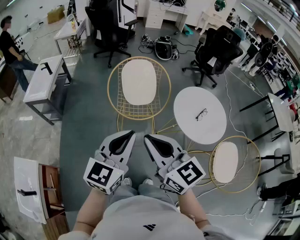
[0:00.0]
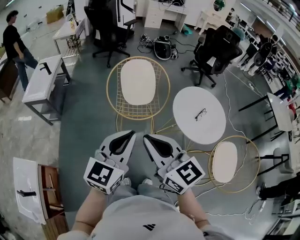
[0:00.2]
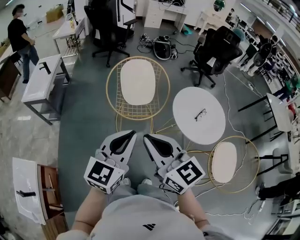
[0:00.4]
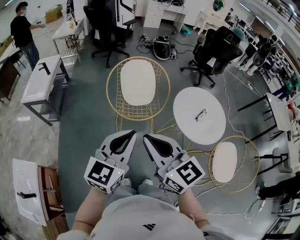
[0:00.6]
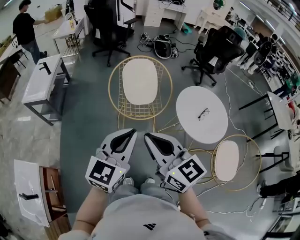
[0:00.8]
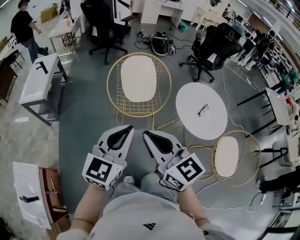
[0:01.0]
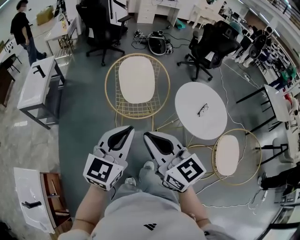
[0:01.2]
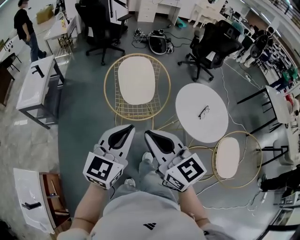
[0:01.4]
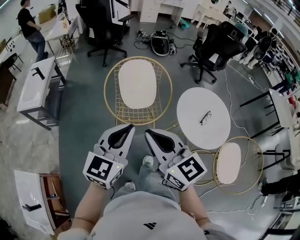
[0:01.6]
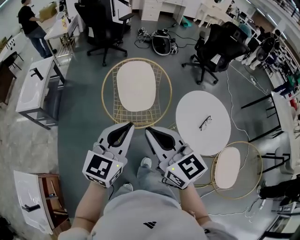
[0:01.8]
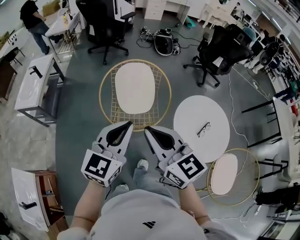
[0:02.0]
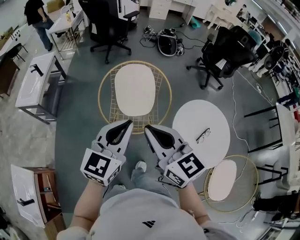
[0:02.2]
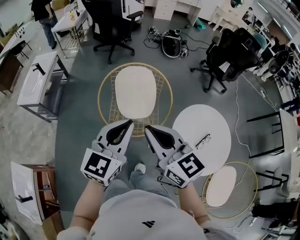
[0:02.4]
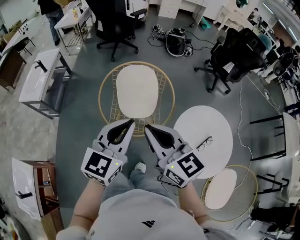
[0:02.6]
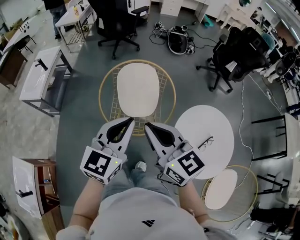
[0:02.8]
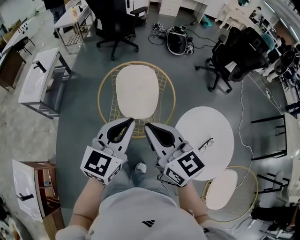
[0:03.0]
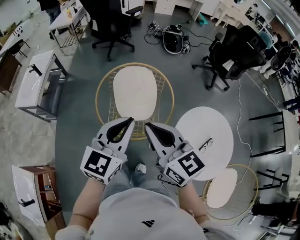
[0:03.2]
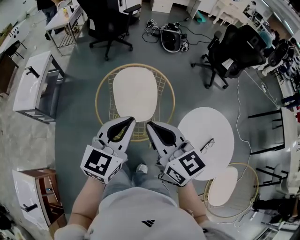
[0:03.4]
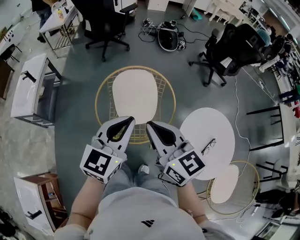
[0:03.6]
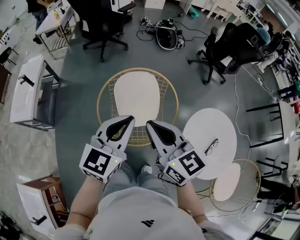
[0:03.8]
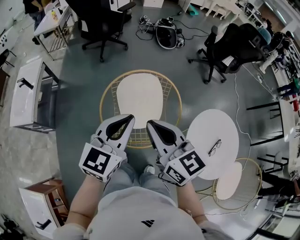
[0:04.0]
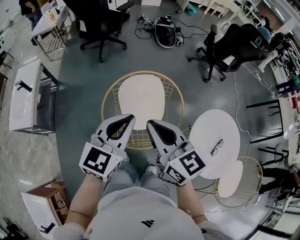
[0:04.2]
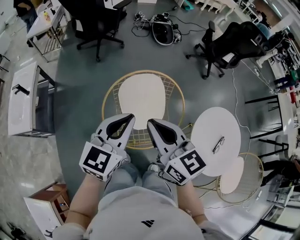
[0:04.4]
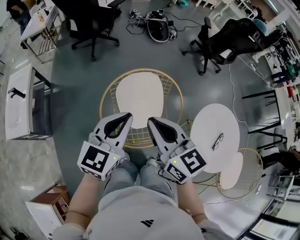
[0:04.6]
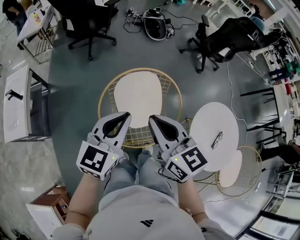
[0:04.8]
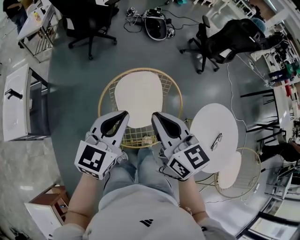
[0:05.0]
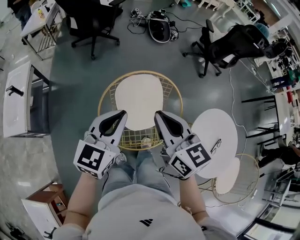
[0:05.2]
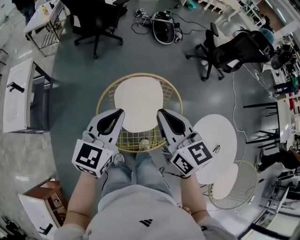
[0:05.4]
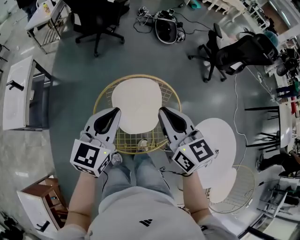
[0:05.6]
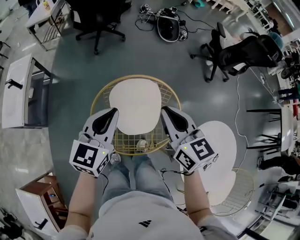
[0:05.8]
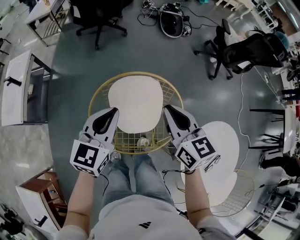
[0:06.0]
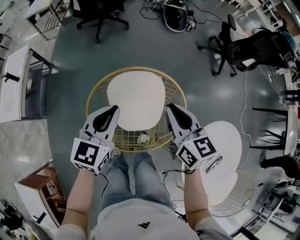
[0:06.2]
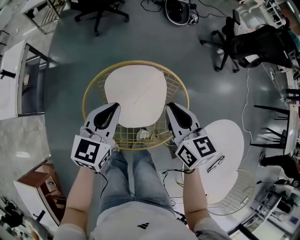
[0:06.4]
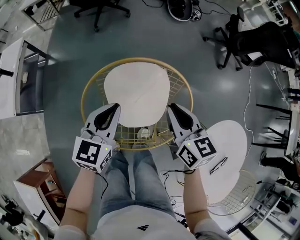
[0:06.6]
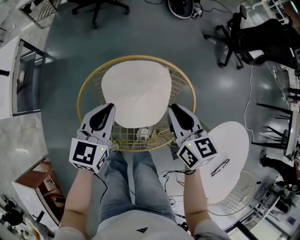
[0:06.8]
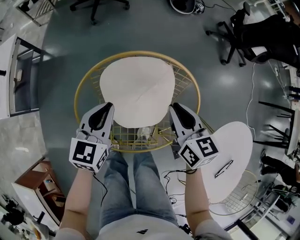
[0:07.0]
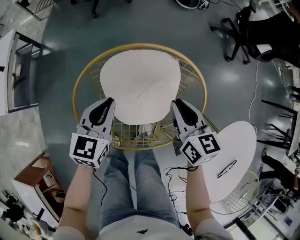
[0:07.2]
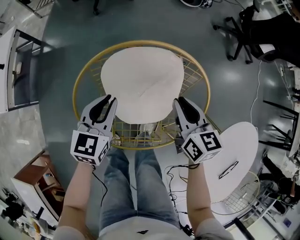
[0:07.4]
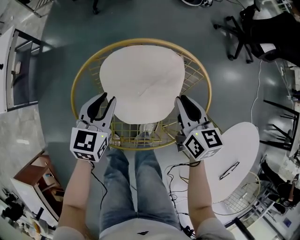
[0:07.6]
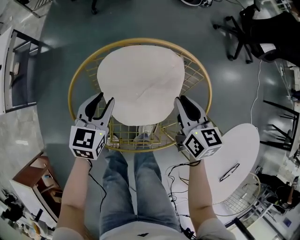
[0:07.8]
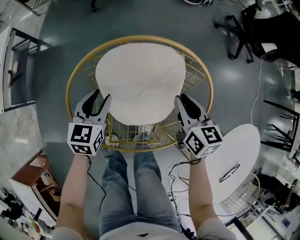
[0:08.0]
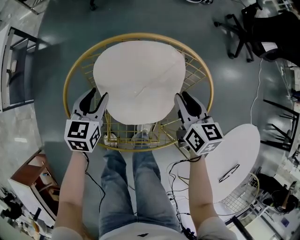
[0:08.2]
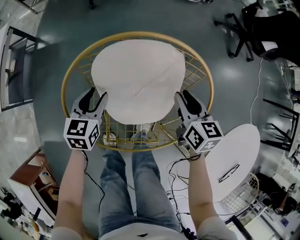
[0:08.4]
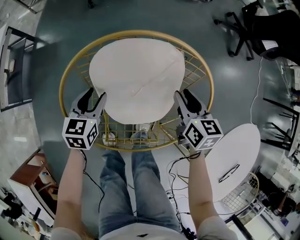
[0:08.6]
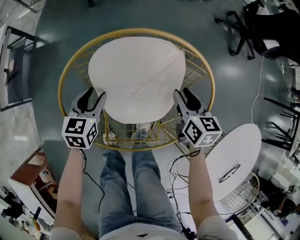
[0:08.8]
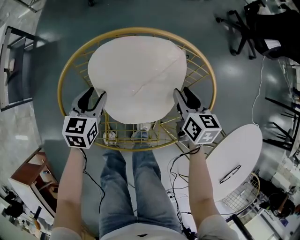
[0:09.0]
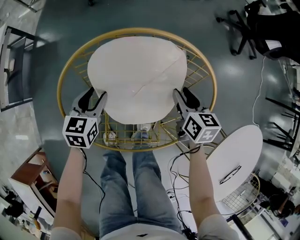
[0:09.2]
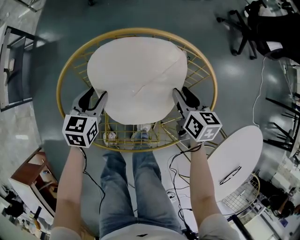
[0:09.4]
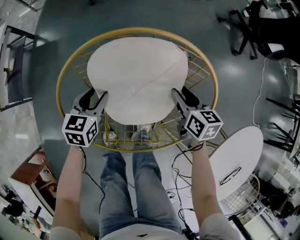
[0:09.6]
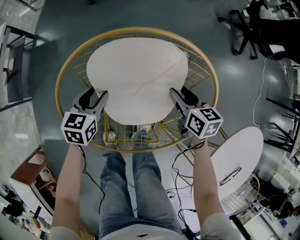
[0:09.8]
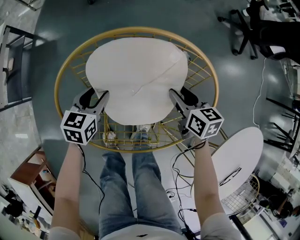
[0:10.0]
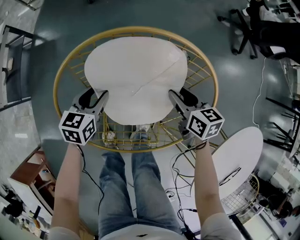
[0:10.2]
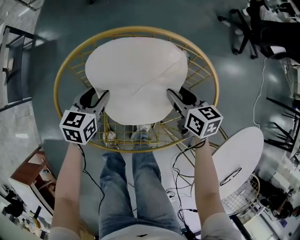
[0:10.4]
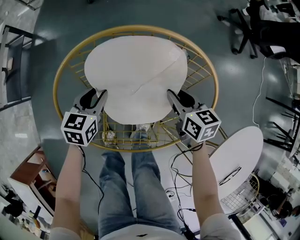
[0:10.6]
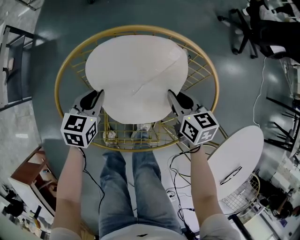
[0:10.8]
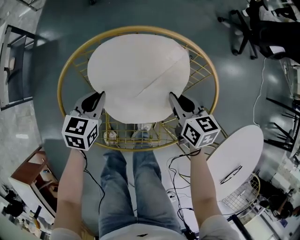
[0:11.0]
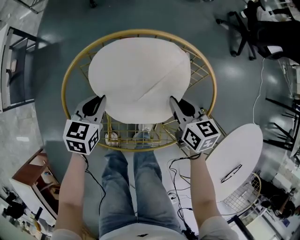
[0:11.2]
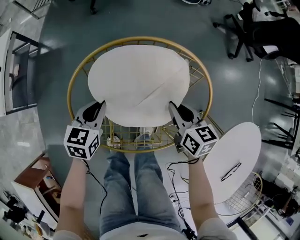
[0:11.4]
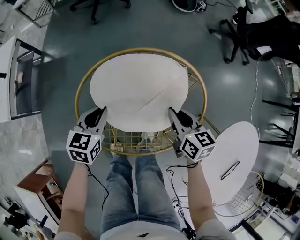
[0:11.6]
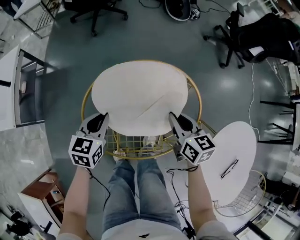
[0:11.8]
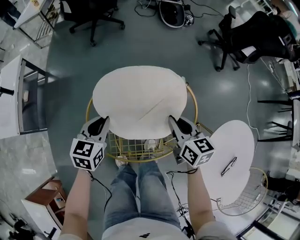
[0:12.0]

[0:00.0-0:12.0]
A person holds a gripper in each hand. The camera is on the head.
0:00.0 to 0:01.6: Both grippers move forward, roughly 10 cm.
0:01.6 to 0:03.0: Both grippers travel together forward and to the right, about 20 cm.
0:03.0 to 0:04.4: The two grippers go some 20 cm forward and to the left.
0:04.4 to 0:06.0: The left gripper is displaced forward and downward by some 15 cm, while the right gripper moves forward, to the right and downward, roughly 20 cm.
0:06.0 to 0:07.6: The two grippers go approximately 25 cm downward. The left gripper opens.
0:07.6 to 0:09.0: Both grippers move downward, some 10 cm. The left gripper opens up.
0:09.0 to 0:10.4: The grippers make only small movements.
0:10.4 to 0:12.0: The two grippers go roughly 15 cm upward. The right gripper closes its fingers. Meanwhile the left gripper closes up.

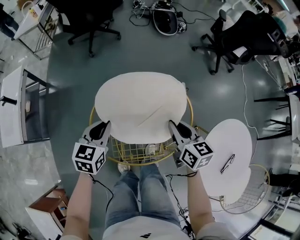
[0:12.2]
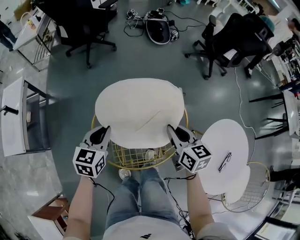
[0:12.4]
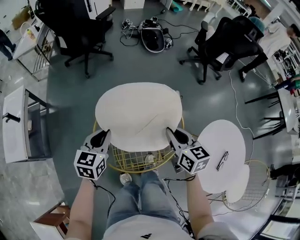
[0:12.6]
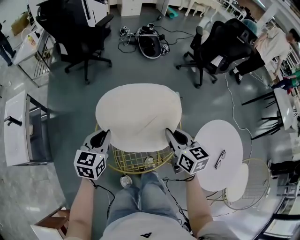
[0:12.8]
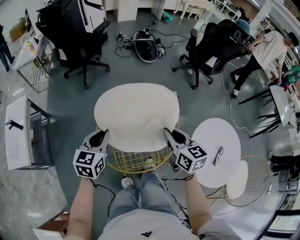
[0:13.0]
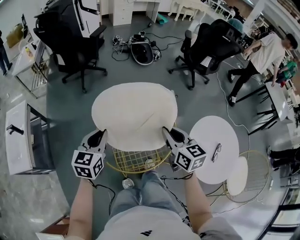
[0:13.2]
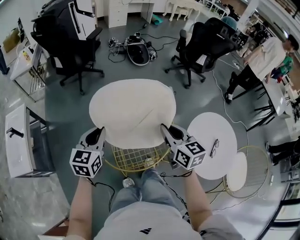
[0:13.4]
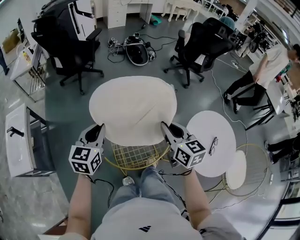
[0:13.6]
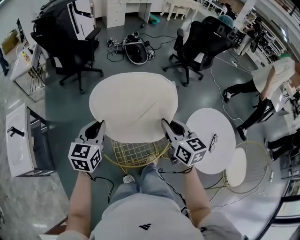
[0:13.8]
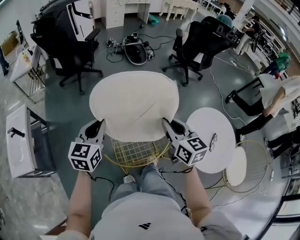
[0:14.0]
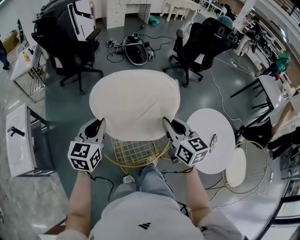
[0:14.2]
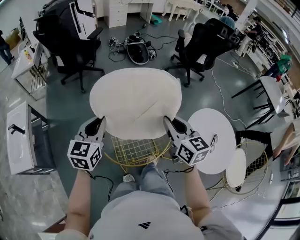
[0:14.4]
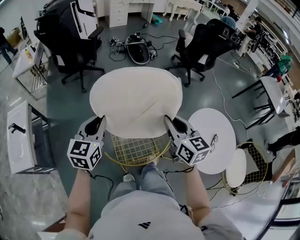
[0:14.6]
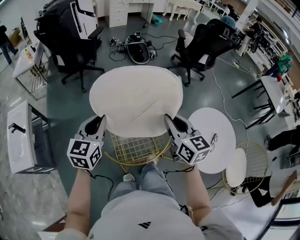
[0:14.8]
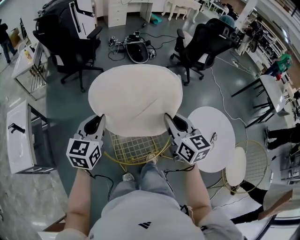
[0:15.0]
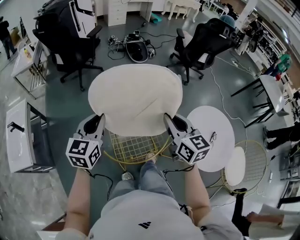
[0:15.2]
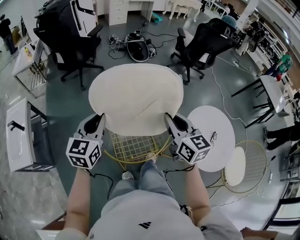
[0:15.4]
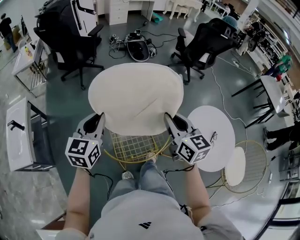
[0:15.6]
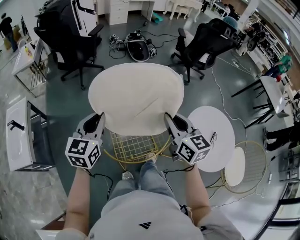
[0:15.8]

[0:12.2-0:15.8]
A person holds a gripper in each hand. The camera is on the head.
0:12.2 to 0:14.0: The left gripper heads upward, covering some 20 cm; the right gripper moves upward and backward, approximately 20 cm.
0:14.0 to 0:15.8: The grippers stay close to where they were, moving slightly.

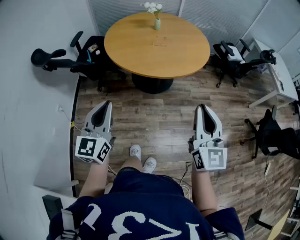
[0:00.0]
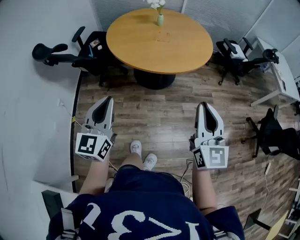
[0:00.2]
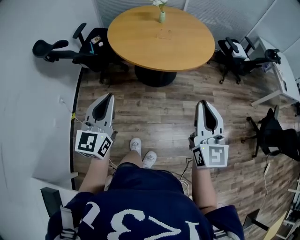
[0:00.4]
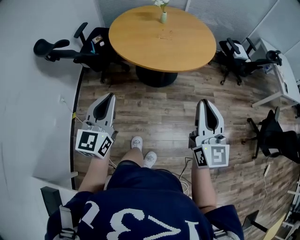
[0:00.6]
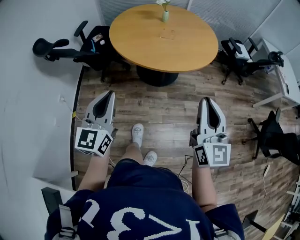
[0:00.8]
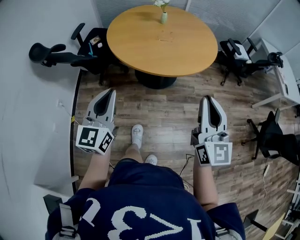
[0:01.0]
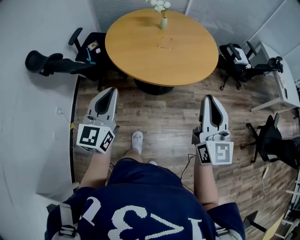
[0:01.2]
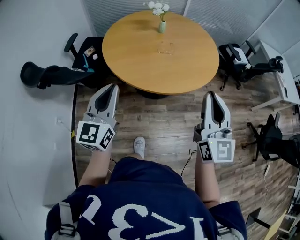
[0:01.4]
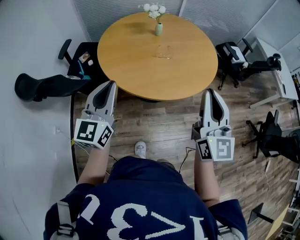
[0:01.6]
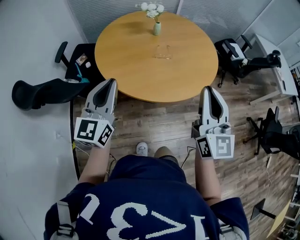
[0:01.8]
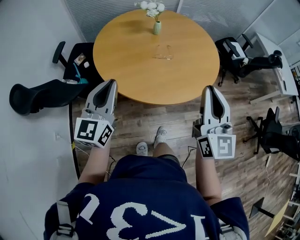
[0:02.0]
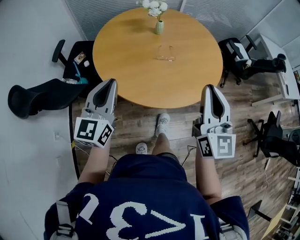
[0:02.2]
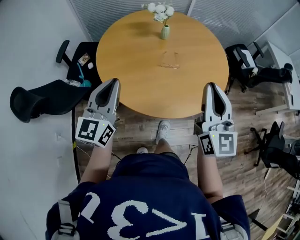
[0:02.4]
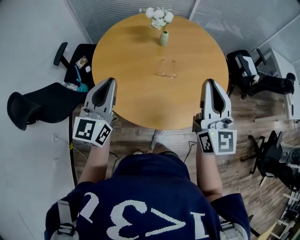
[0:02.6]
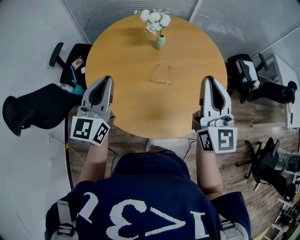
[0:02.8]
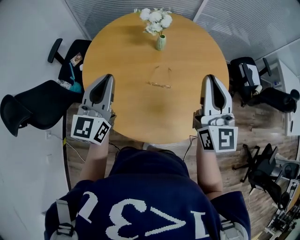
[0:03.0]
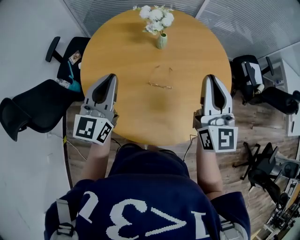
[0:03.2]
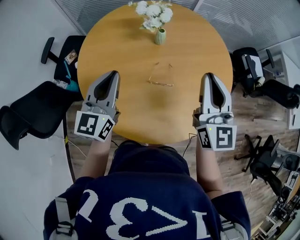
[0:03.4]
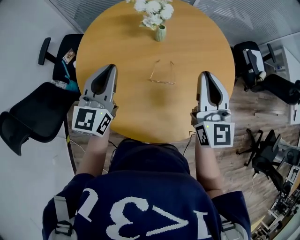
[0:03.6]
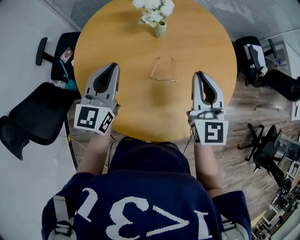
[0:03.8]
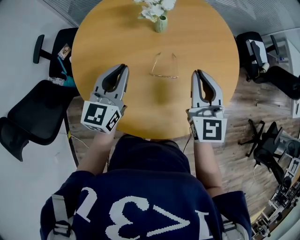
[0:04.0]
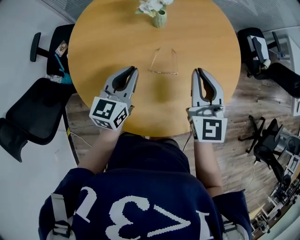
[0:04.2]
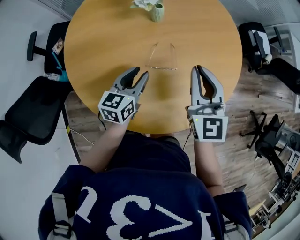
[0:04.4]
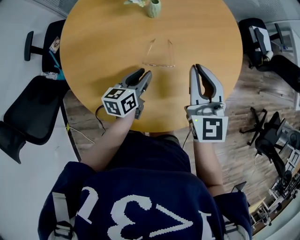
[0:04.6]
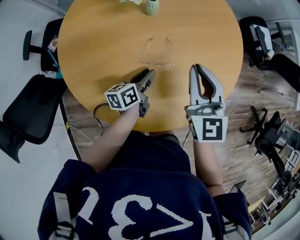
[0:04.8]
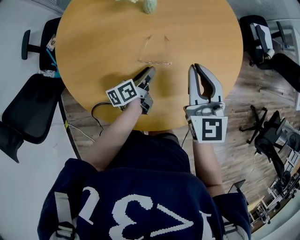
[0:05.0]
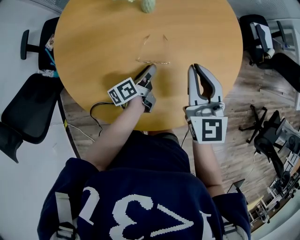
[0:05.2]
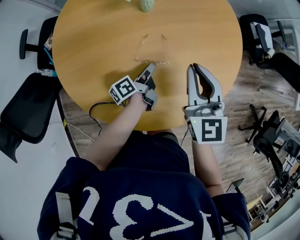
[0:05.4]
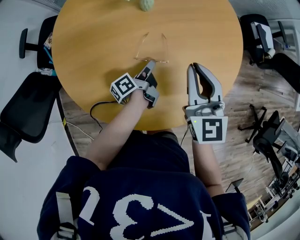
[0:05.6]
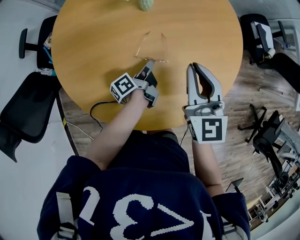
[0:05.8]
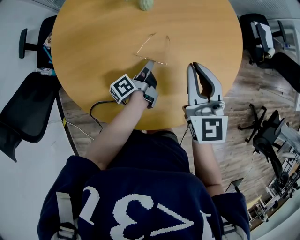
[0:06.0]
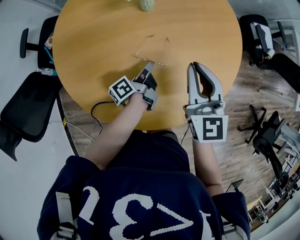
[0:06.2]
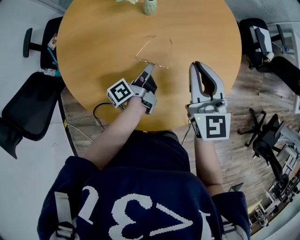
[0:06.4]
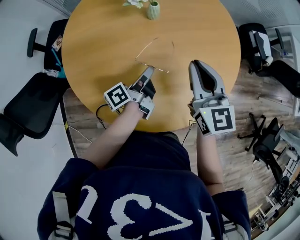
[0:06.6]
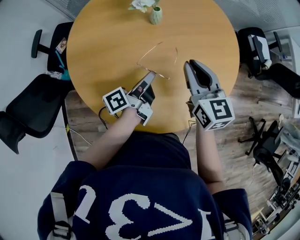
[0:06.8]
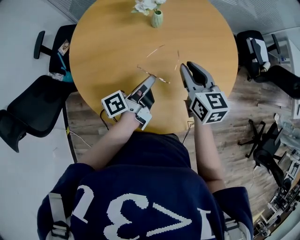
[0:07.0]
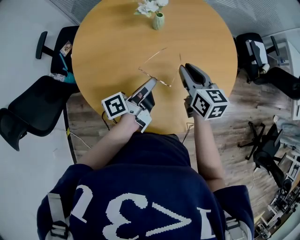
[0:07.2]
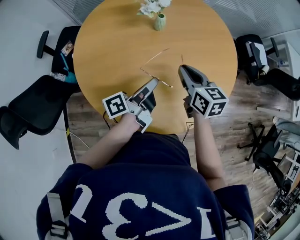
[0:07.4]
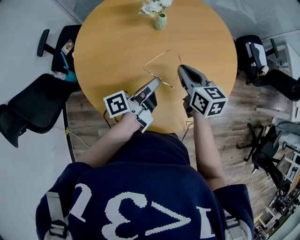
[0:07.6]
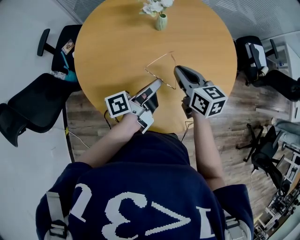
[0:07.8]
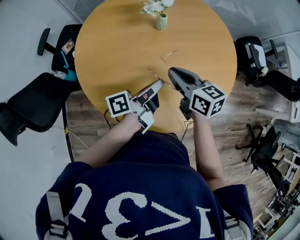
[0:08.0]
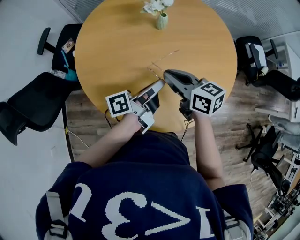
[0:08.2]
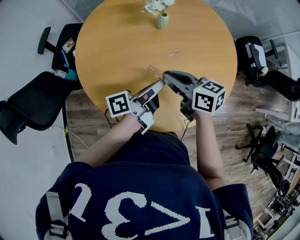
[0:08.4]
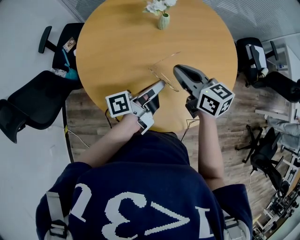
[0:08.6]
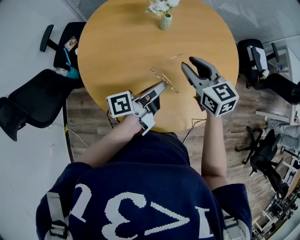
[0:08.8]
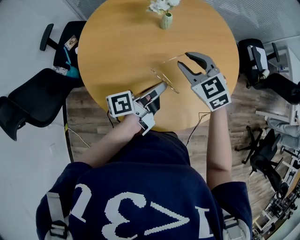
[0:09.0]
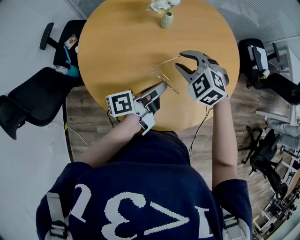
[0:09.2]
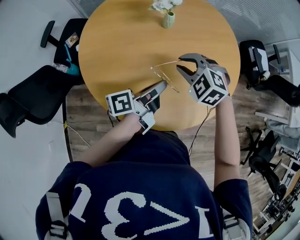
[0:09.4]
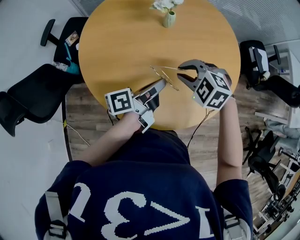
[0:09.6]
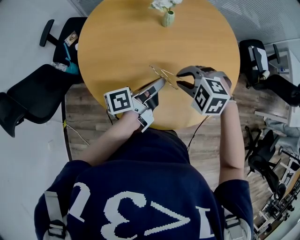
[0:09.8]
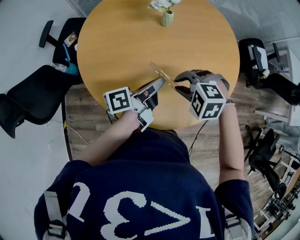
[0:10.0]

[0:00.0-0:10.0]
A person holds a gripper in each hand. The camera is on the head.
0:00.0 to 0:01.4: The grippers both shift forward by about 20 cm.
0:01.4 to 0:02.8: Both grippers travel together forward, about 35 cm.
0:02.8 to 0:04.2: The left gripper is displaced downward, forward and to the right by approximately 20 cm, and swivels approximately 30 degrees. The right gripper is displaced downward and forward by approximately 20 cm, and swivels approximately 20 degrees.
0:04.2 to 0:05.8: The left gripper goes some 20 cm downward and to the right, and rotates around the line of its fingers by some 80 degrees, counterclockwise from behind. Meanwhile the right gripper ends up about 5 cm from where it was.
0:05.8 to 0:07.2: The left gripper moves upward, some 15 cm, and swivels some 20 degrees; the right gripper moves approximately 5 cm, and turns by about 30 degrees.
0:07.2 to 0:08.6: The right gripper travels to the left by roughly 5 cm.
0:08.6 to 0:10.0: The right gripper goes approximately 10 cm backward and downward, and tilts its fingers about 50 degrees downward.
